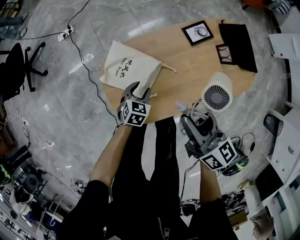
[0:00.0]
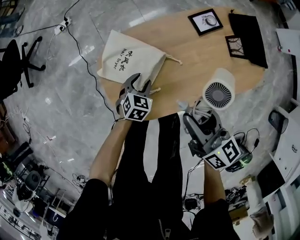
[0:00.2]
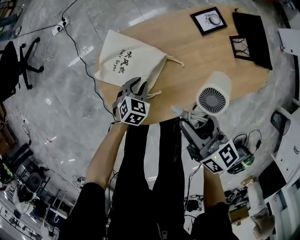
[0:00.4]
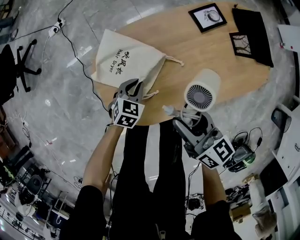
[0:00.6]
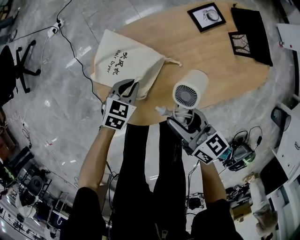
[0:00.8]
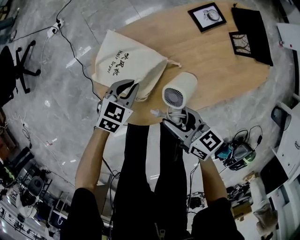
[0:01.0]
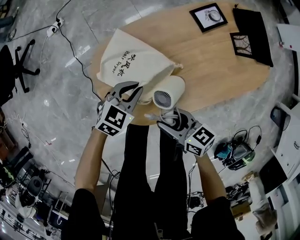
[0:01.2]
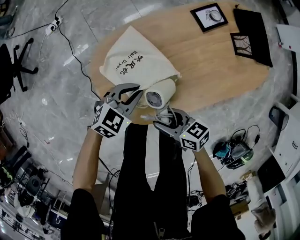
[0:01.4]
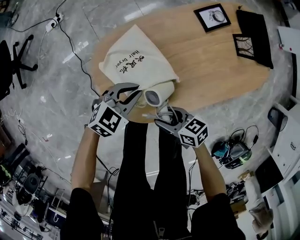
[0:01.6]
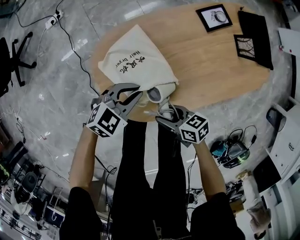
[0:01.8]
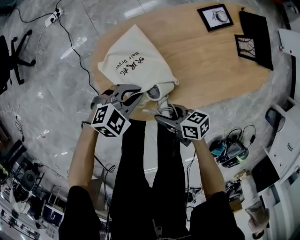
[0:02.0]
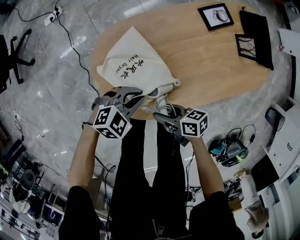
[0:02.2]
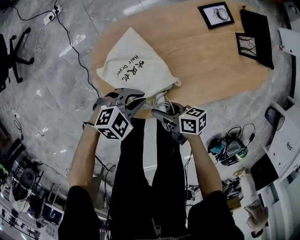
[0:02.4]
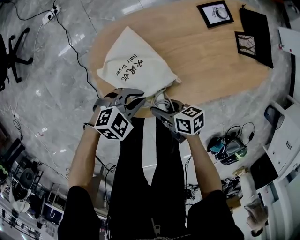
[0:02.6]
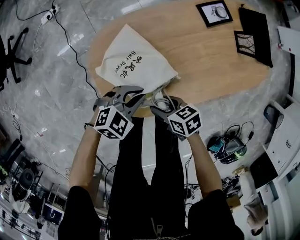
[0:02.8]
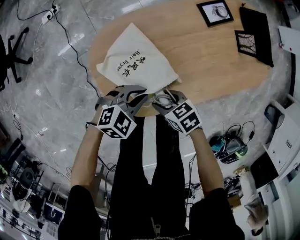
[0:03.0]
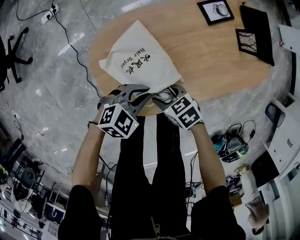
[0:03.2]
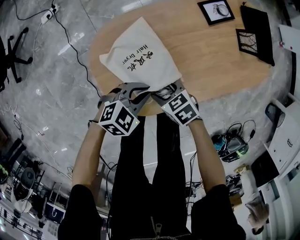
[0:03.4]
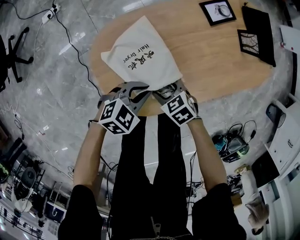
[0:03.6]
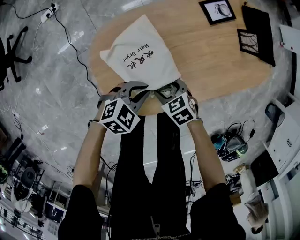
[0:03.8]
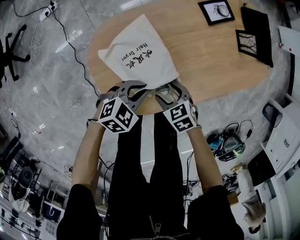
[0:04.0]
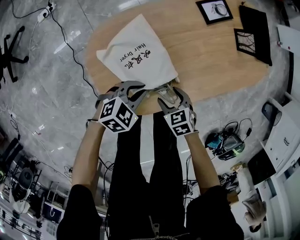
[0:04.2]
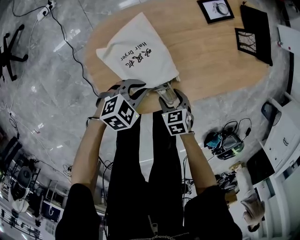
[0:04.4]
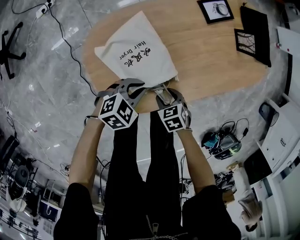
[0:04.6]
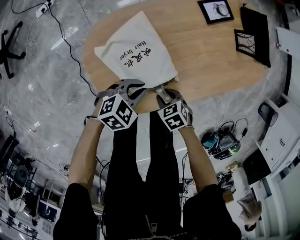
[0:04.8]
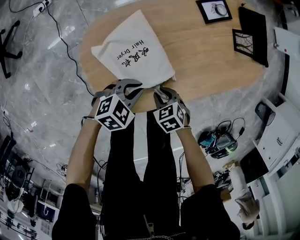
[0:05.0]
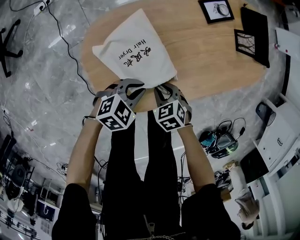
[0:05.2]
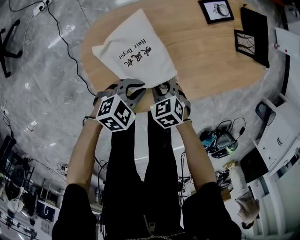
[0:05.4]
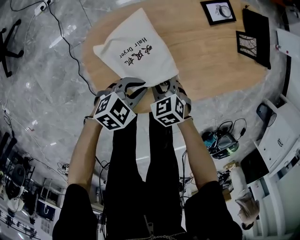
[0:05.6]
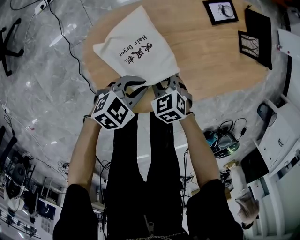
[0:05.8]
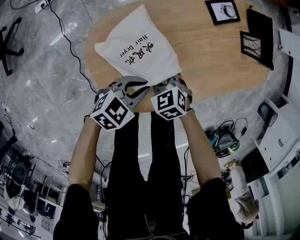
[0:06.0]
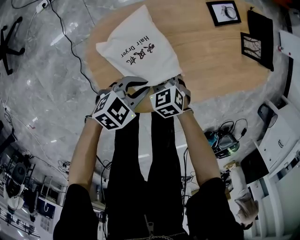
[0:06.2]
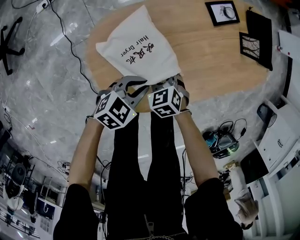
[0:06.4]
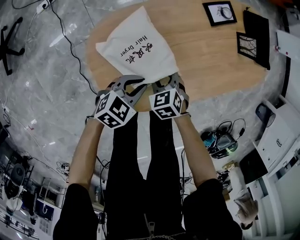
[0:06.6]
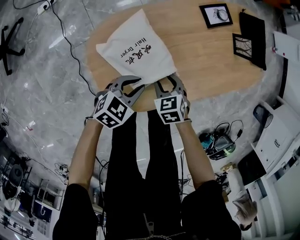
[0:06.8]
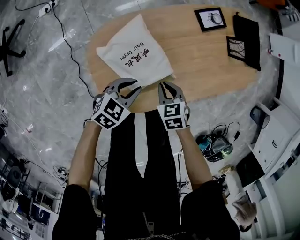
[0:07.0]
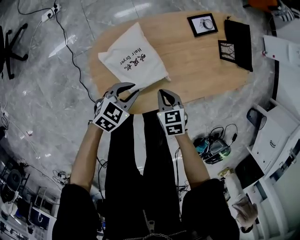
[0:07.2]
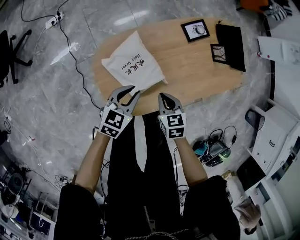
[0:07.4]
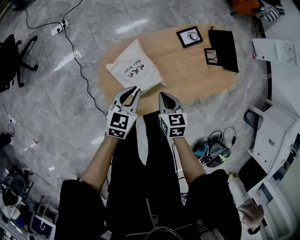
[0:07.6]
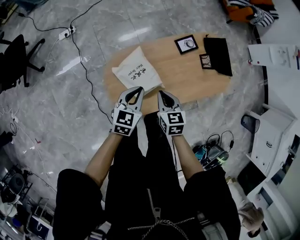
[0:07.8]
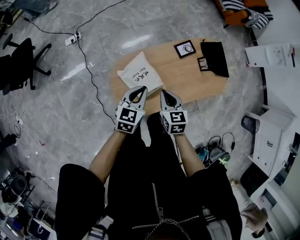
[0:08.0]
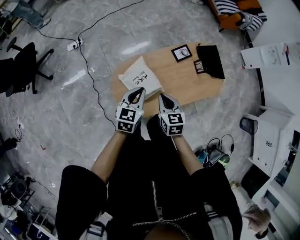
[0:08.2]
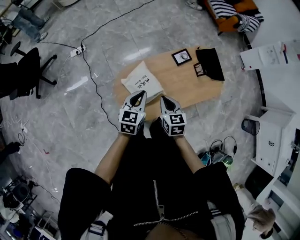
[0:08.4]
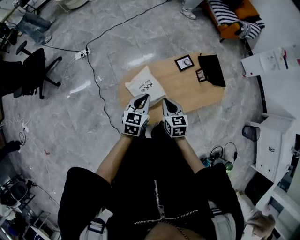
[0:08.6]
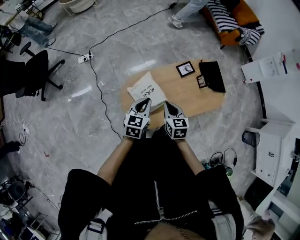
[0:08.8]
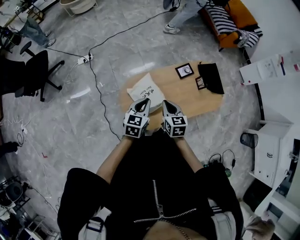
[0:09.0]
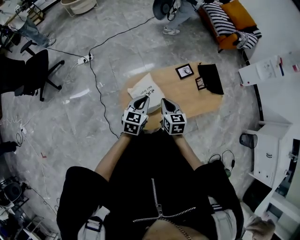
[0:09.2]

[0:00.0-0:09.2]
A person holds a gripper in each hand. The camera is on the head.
0:00.0 to 0:01.6: The left gripper travels downward and back again, about 5 cm each way, changes its angle by about 30 degrees, and closes up, while the right gripper travels downward by approximately 25 cm, and swivels about 40 degrees.
0:01.6 to 0:03.0: The left gripper ends up approximately 5 cm from where it was; the right gripper changes its angle by some 20 degrees.
0:03.0 to 0:04.6: The right gripper heads downward, covering roughly 5 cm, and swivels roughly 20 degrees.
0:04.6 to 0:06.2: The right gripper ends up roughly 15 cm from where it was, and changes its angle by about 20 degrees.
0:06.2 to 0:07.6: The grippers both shift upward by approximately 20 cm. The left gripper changes its angle by approximately 40 degrees, while the right gripper changes its angle by approximately 30 degrees, and closes.
0:07.6 to 0:09.2: Both grippers travel together upward, about 15 cm.

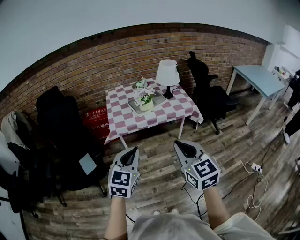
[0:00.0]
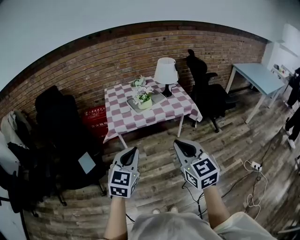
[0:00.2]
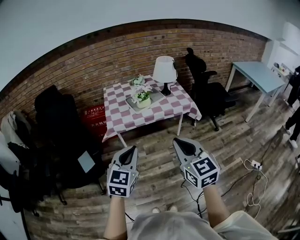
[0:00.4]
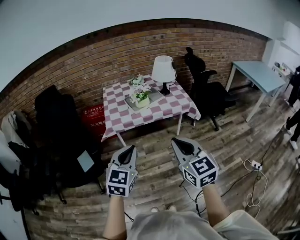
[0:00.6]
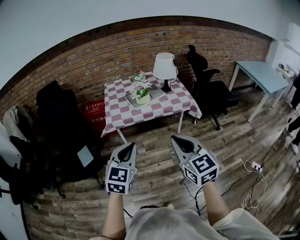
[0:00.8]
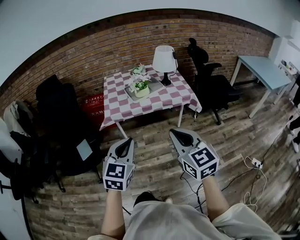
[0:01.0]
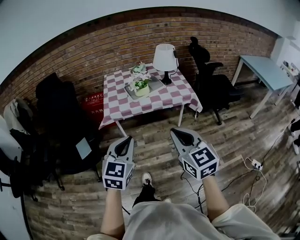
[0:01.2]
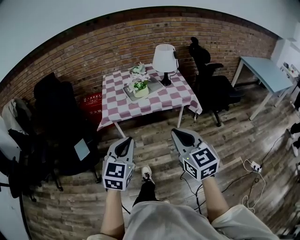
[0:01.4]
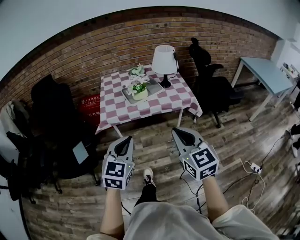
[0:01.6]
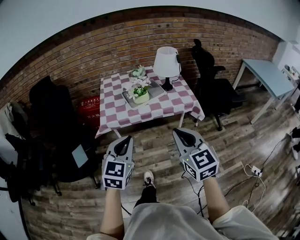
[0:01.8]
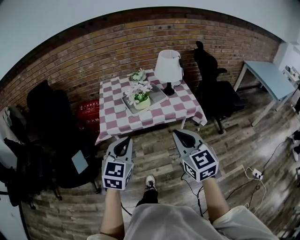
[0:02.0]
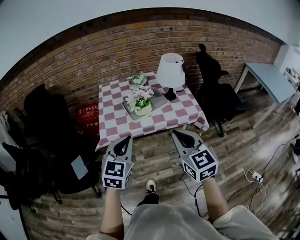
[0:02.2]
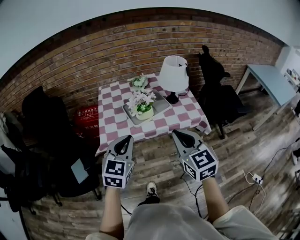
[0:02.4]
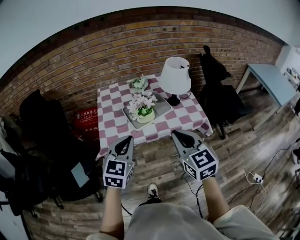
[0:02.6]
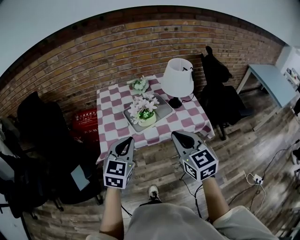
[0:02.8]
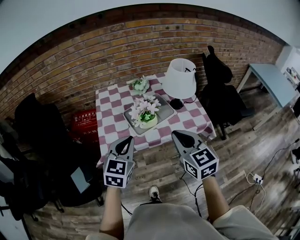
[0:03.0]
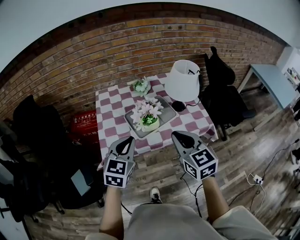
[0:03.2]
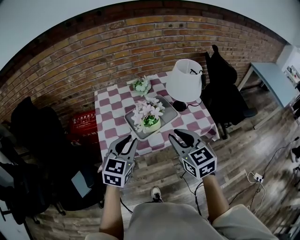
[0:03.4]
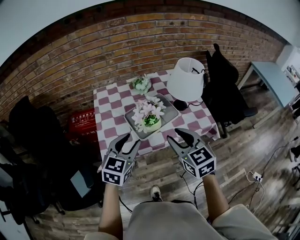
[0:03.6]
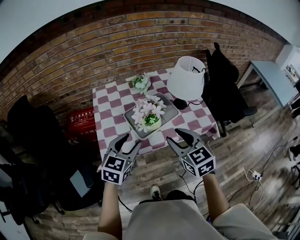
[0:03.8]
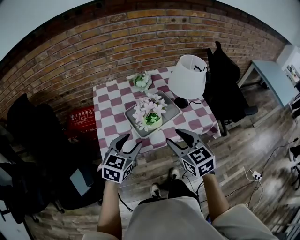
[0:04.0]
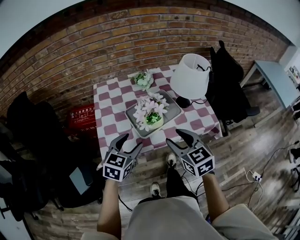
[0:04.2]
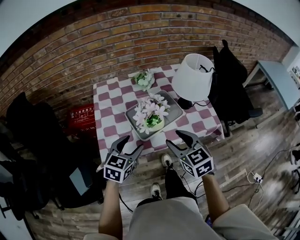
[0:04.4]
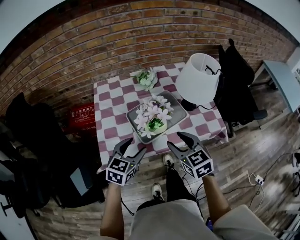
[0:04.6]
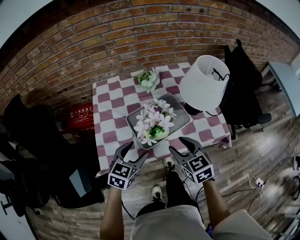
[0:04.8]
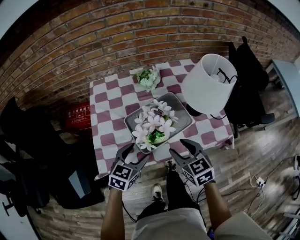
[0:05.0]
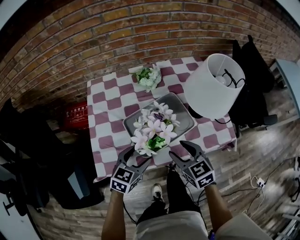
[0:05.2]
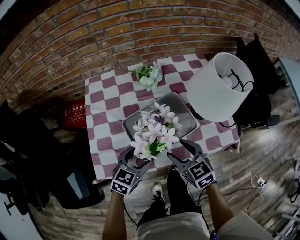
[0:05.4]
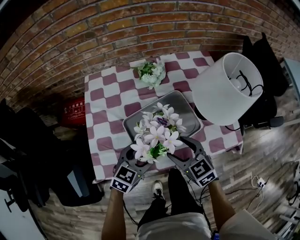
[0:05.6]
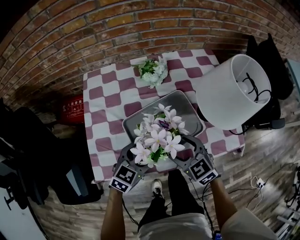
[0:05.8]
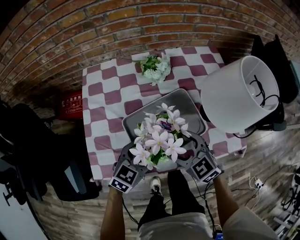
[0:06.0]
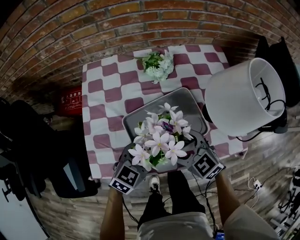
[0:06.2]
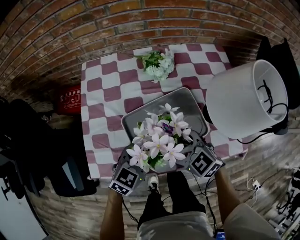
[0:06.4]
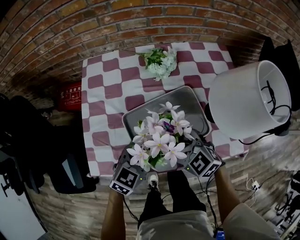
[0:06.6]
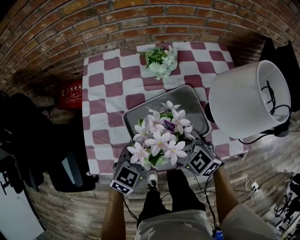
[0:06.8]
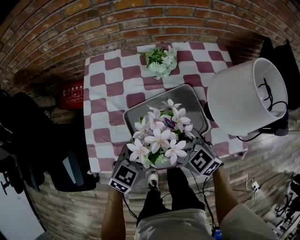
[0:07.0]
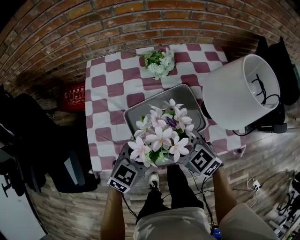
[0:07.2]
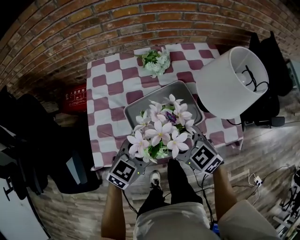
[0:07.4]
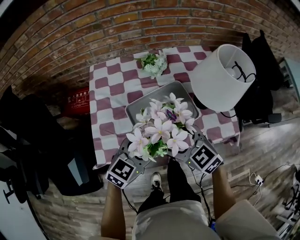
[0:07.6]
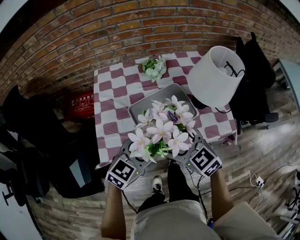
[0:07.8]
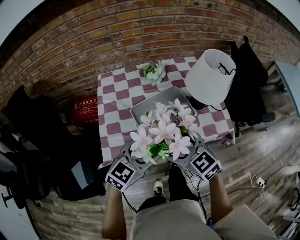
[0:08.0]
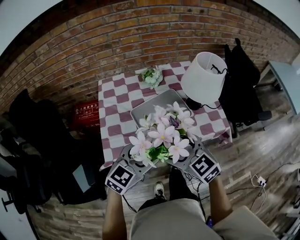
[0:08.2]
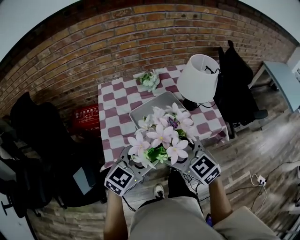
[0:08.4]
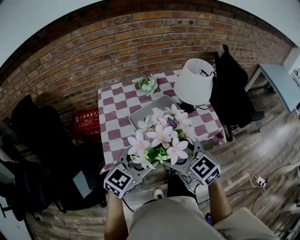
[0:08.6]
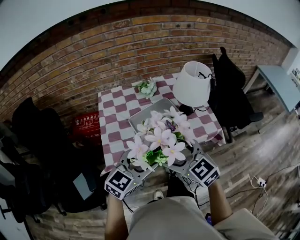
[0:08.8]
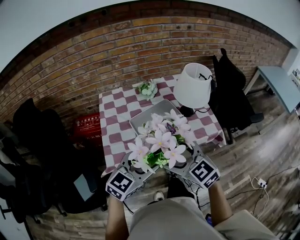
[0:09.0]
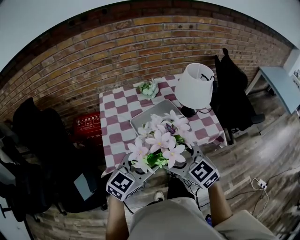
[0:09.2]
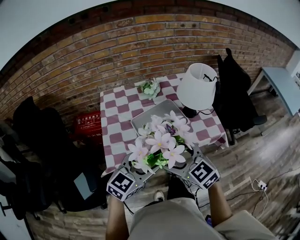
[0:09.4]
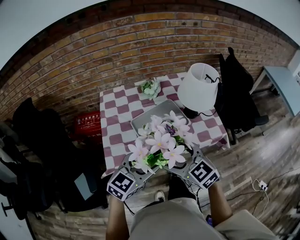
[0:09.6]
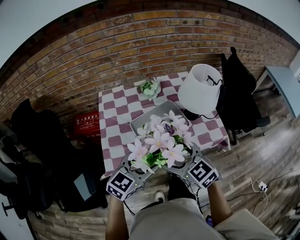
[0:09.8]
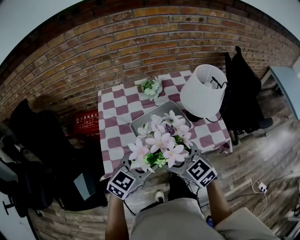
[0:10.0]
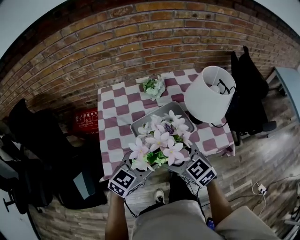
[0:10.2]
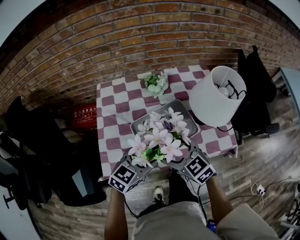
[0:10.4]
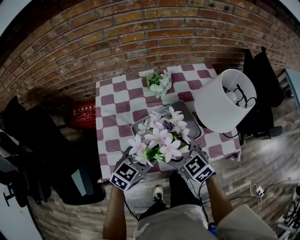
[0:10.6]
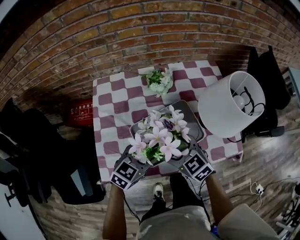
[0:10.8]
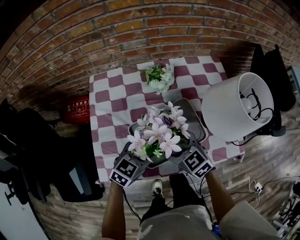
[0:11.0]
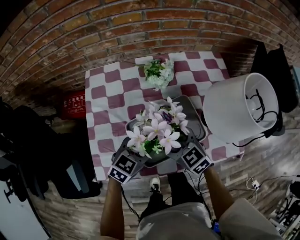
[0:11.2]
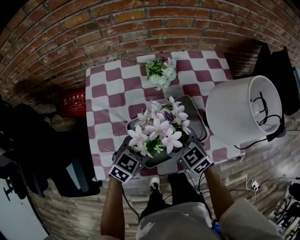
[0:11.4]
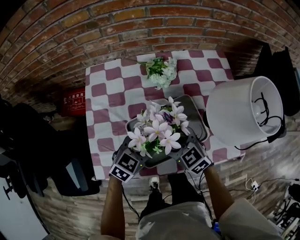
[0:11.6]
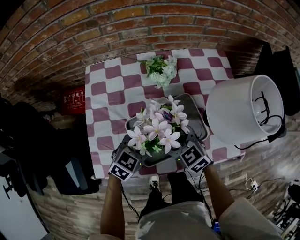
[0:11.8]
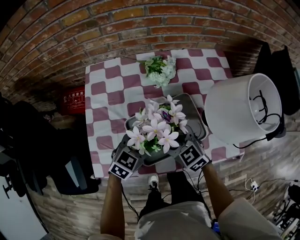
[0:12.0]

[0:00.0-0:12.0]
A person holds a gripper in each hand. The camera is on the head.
0:00.0 to 0:01.6: The right gripper is displaced to the right and forward by about 10 cm. The left gripper heads to the right, covering about 5 cm.
0:01.6 to 0:03.0: Both grippers travel together forward, approximately 30 cm.
0:03.0 to 0:04.4: Both grippers move downward and forward, about 15 cm. The left gripper opens. Meanwhile the right gripper opens up.
0:04.4 to 0:06.0: The grippers both shift downward and forward by roughly 20 cm. The right gripper turns by some 30 degrees, and opens up.
0:06.0 to 0:07.6: Both grippers move upward, roughly 10 cm.
0:07.6 to 0:09.0: The grippers both shift backward and upward by approximately 20 cm.
0:09.0 to 0:10.4: Both grippers move forward and downward, roughly 20 cm.
0:10.4 to 0:12.0: The two grippers go some 15 cm downward and forward.

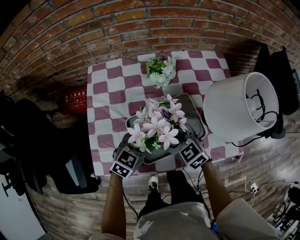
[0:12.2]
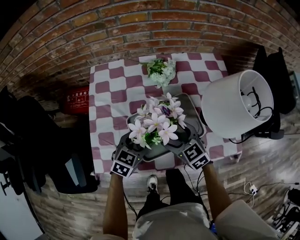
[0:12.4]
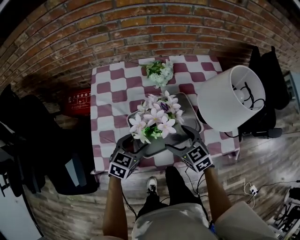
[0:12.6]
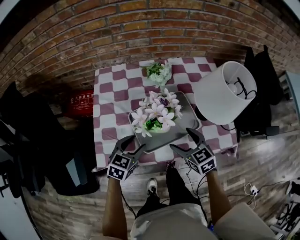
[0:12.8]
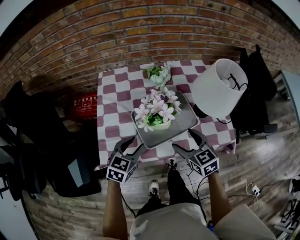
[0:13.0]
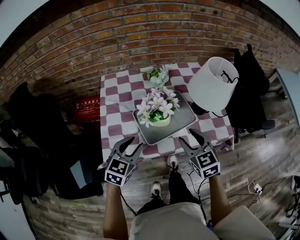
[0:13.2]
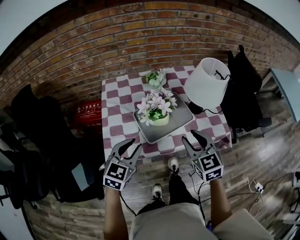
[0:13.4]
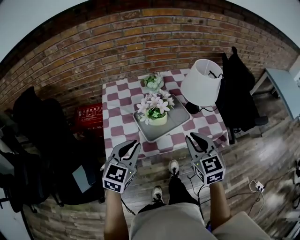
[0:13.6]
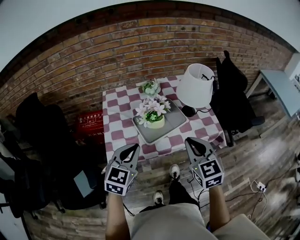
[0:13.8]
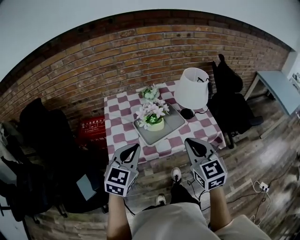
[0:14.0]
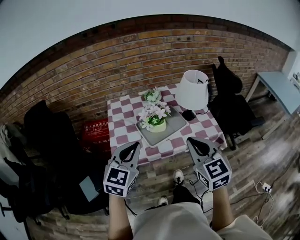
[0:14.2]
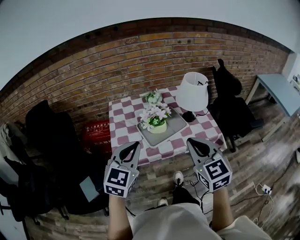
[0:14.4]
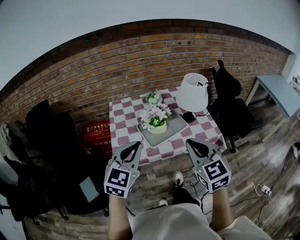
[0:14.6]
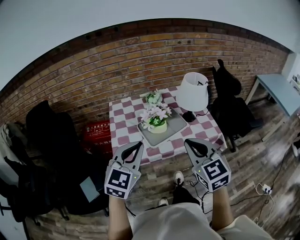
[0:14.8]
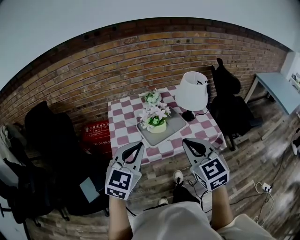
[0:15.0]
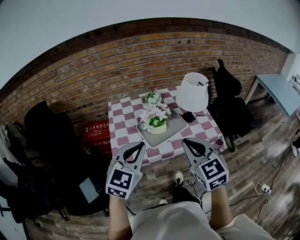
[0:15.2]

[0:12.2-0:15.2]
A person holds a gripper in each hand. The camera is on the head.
0:12.2 to 0:13.8: Both grippers travel together upward and backward, about 30 cm. The left gripper rotates about 20 degrees, and closes its fingers. Meanwhile the right gripper changes its angle by about 40 degrees, and closes its fingers.
0:13.8 to 0:15.2: The left gripper moves upward, about 10 cm. The right gripper goes some 10 cm upward and backward.
